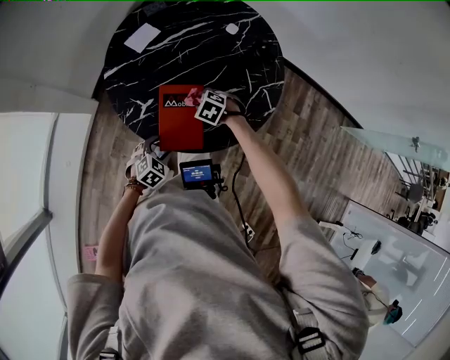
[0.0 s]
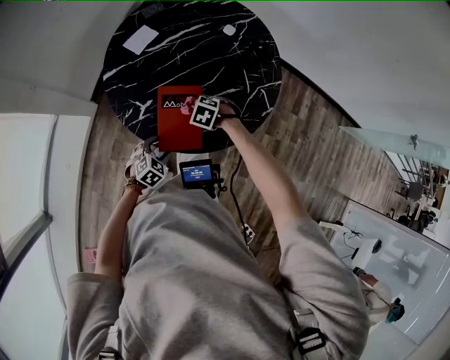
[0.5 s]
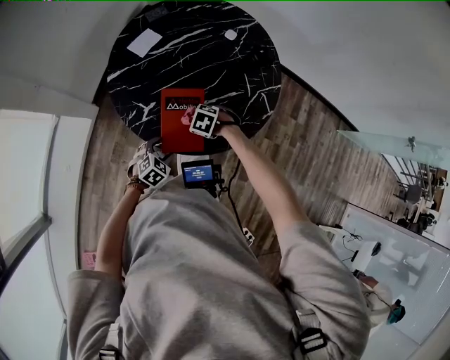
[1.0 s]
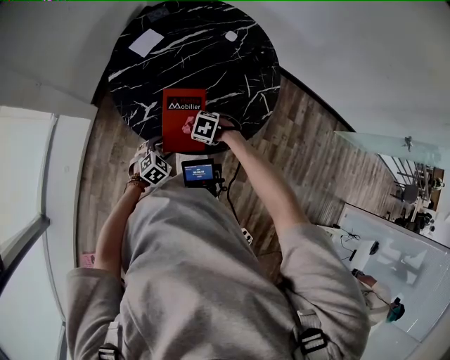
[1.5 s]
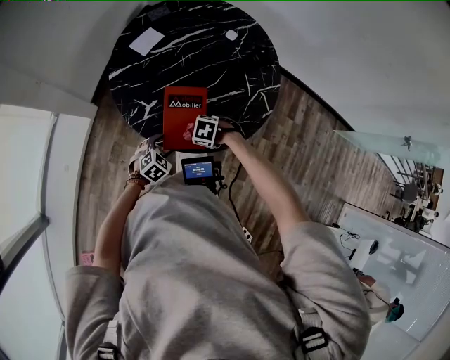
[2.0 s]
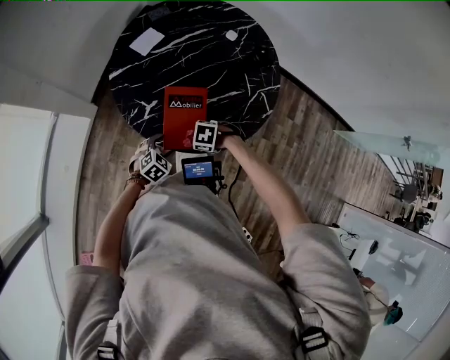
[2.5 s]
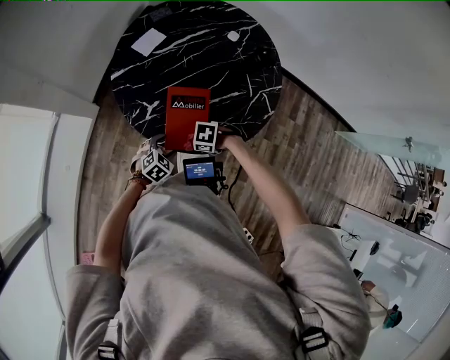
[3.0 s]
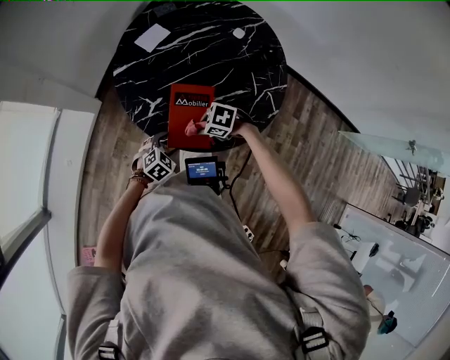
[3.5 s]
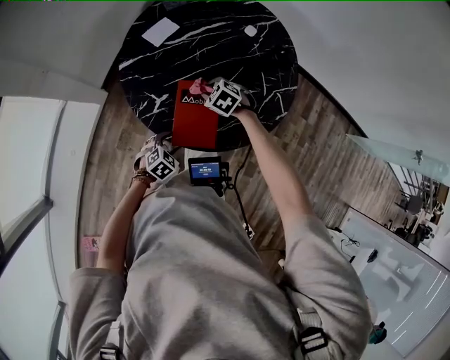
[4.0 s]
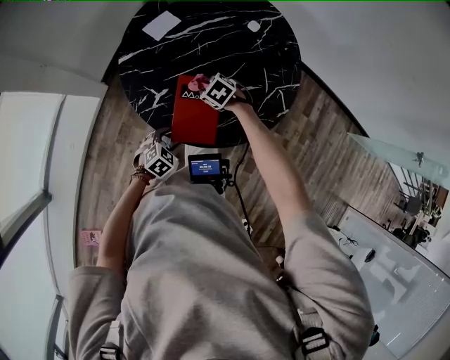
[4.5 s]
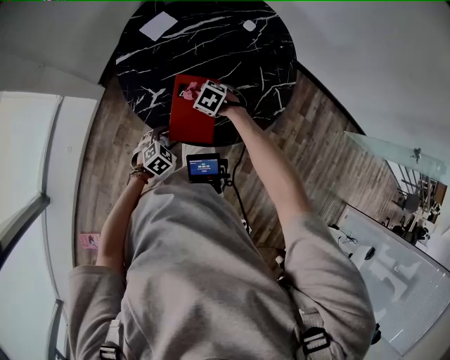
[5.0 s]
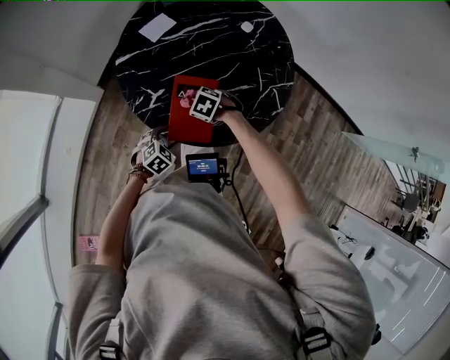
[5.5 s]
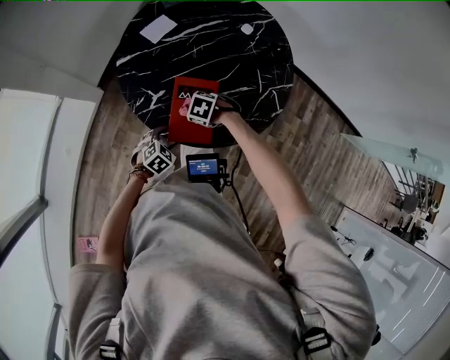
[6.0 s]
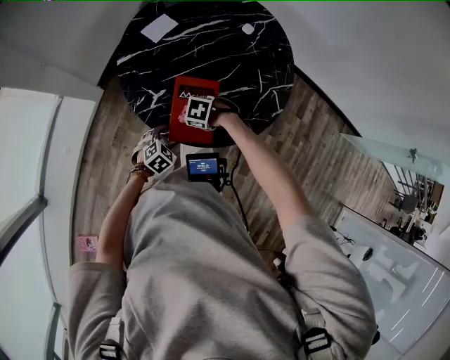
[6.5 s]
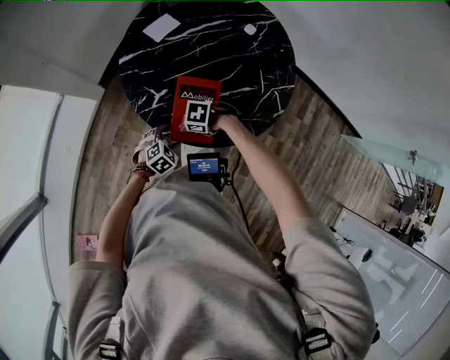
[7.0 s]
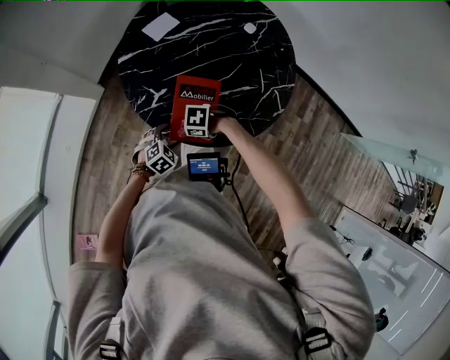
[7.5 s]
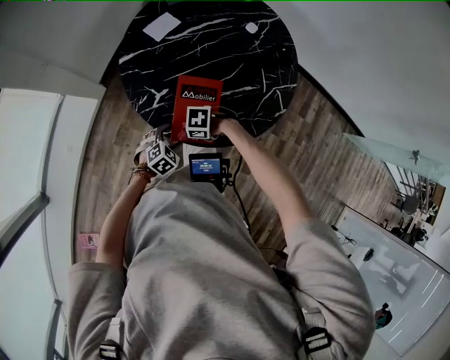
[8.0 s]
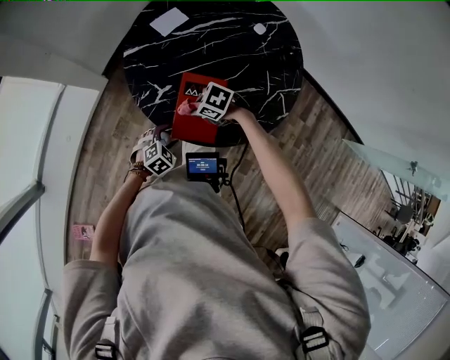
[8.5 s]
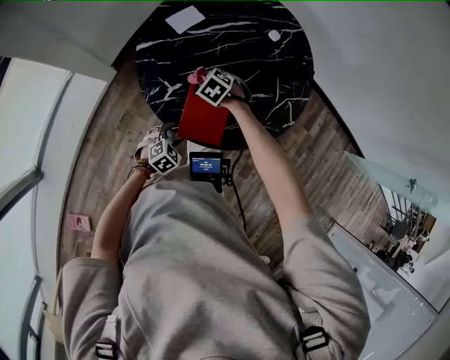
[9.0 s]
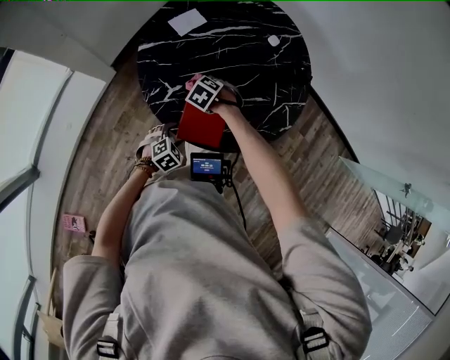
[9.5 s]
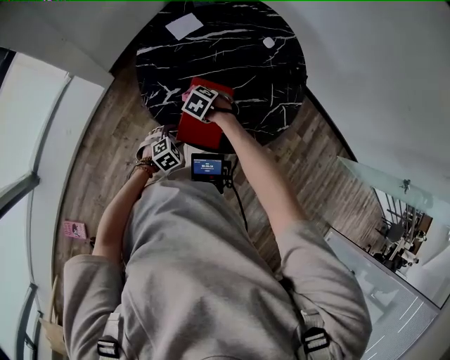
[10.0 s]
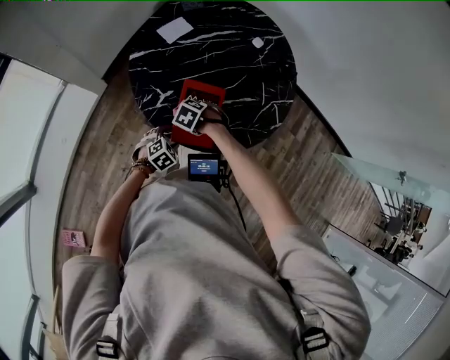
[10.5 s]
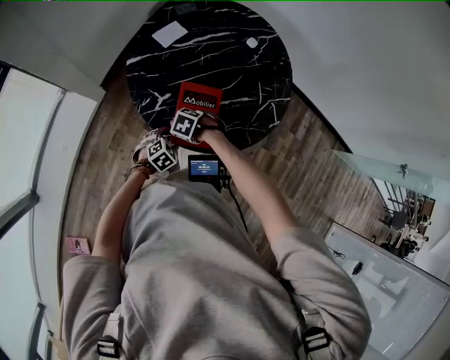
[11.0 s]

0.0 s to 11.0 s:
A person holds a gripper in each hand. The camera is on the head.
0.0 to 2.0 s: The right gripper moves some 15 cm, and changes its angle by some 20 degrees.
2.0 to 3.5 s: The right gripper moves roughly 5 cm.
5.5 to 7.5 s: The right gripper shifts by approximately 10 cm, and rotates roughly 30 degrees.
7.5 to 9.0 s: The right gripper ends up about 20 cm from where it was, and rotates roughly 40 degrees.
9.0 to 11.0 s: The right gripper ends up some 15 cm from where it was.

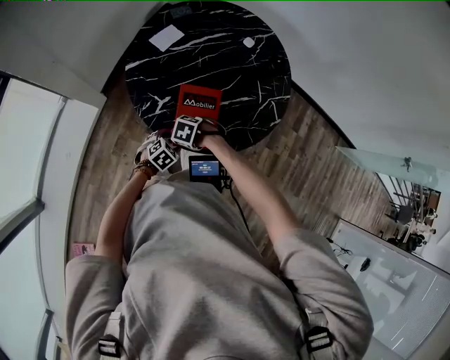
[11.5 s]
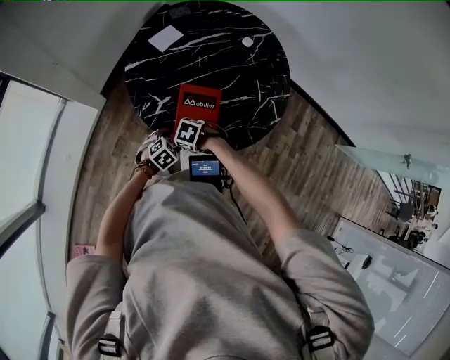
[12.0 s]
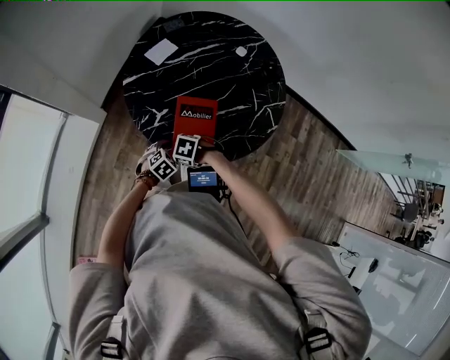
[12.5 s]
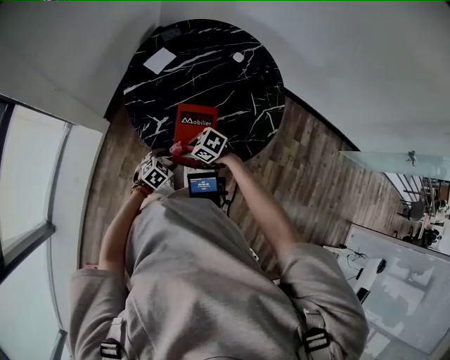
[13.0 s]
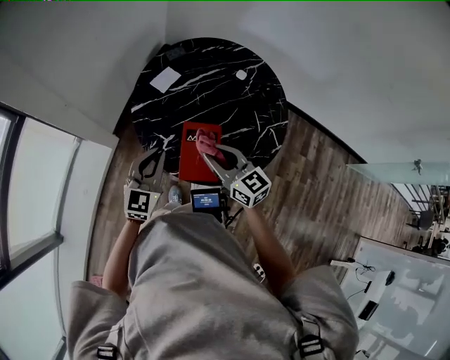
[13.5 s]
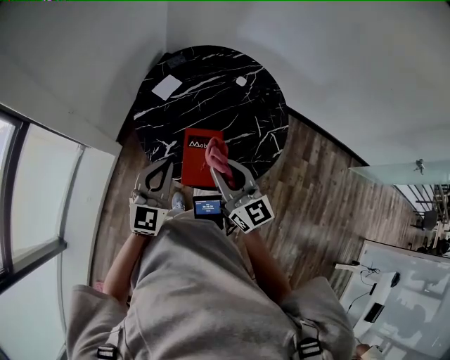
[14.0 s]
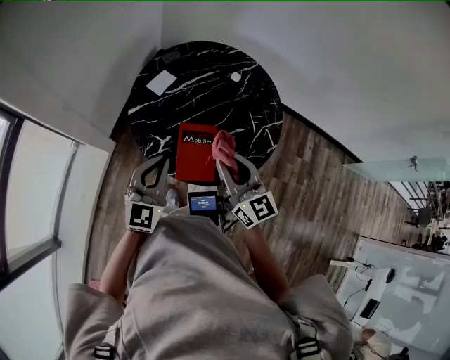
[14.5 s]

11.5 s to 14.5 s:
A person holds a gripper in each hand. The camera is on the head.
11.5 to 13.0 s: The right gripper travels upward by roughly 5 cm, and rotates roughly 30 degrees.
13.0 to 14.5 s: Both grippers travel together upward, about 30 cm. The right gripper tips its fingers upward by approximately 50 degrees, while the left gripper angles its fingers upward, by about 50 degrees, and closes.

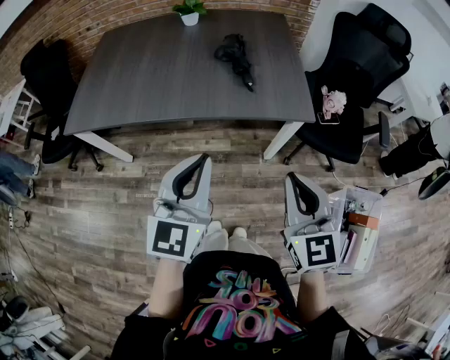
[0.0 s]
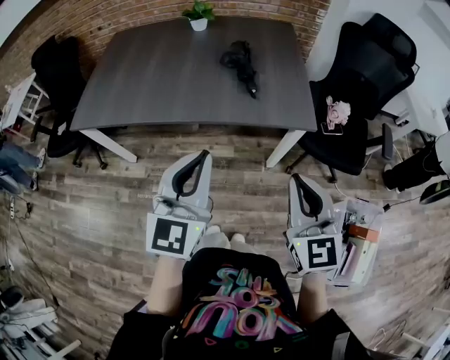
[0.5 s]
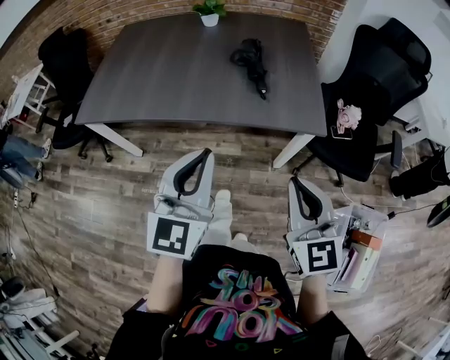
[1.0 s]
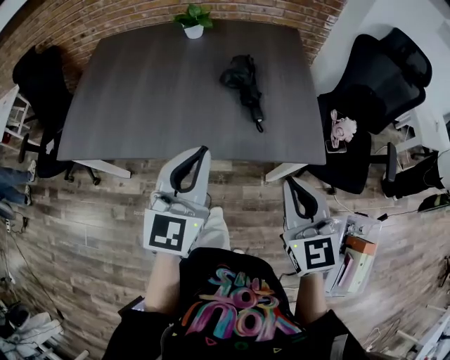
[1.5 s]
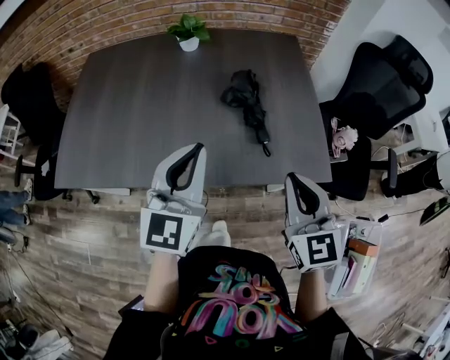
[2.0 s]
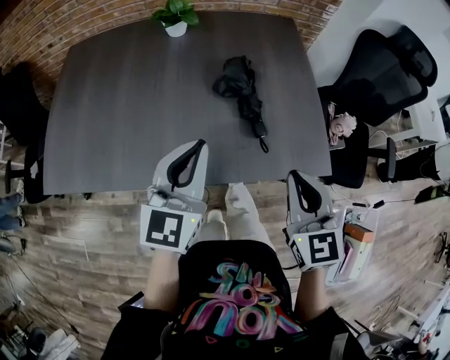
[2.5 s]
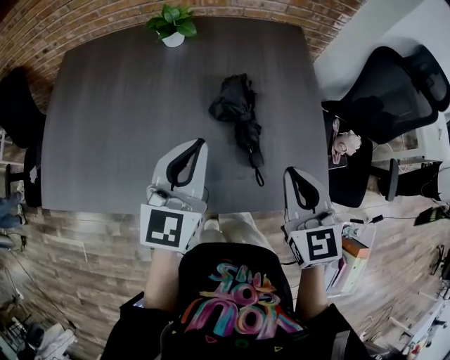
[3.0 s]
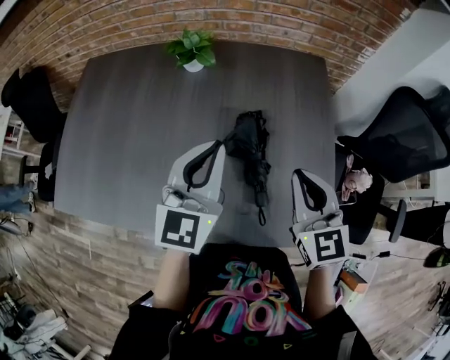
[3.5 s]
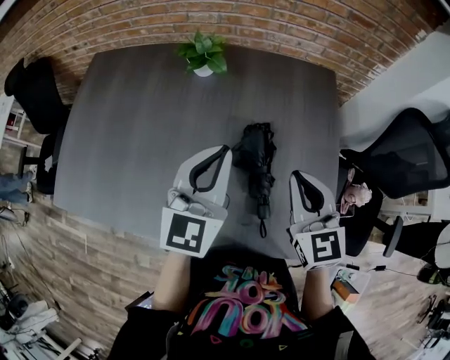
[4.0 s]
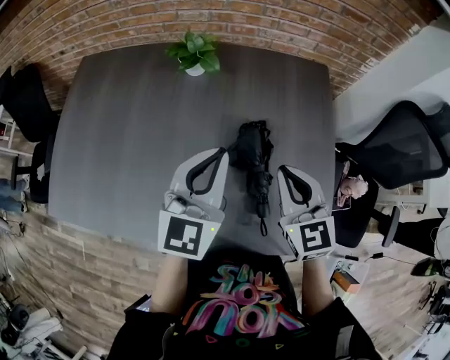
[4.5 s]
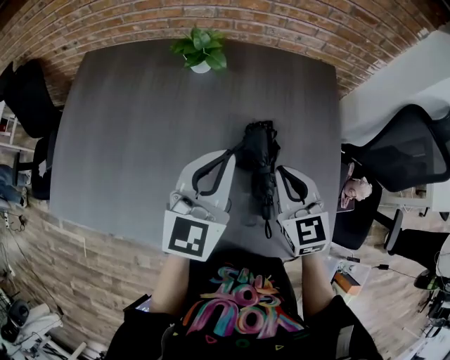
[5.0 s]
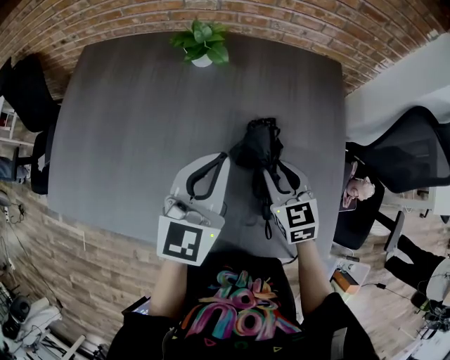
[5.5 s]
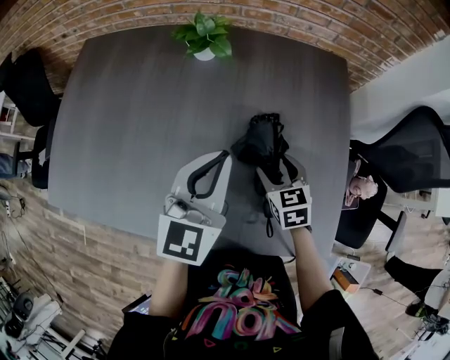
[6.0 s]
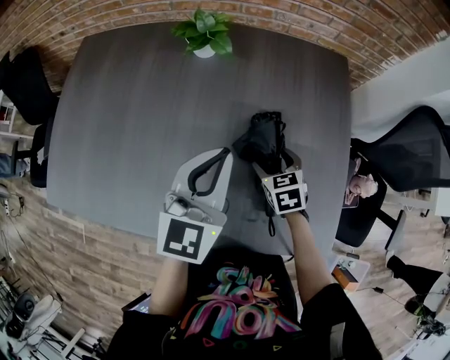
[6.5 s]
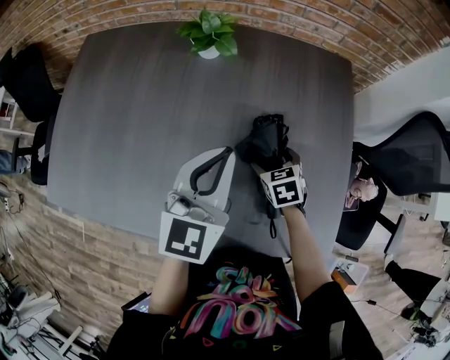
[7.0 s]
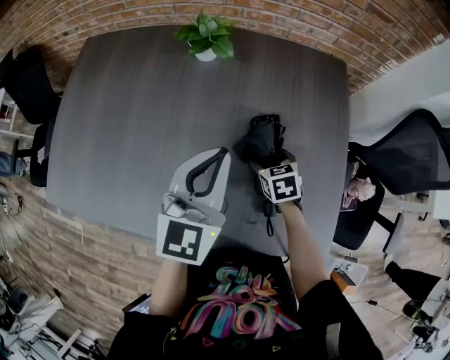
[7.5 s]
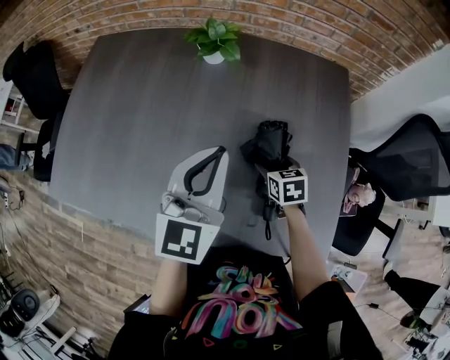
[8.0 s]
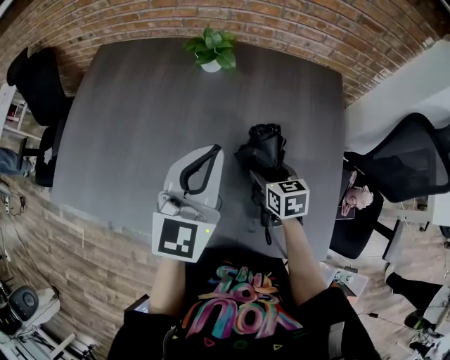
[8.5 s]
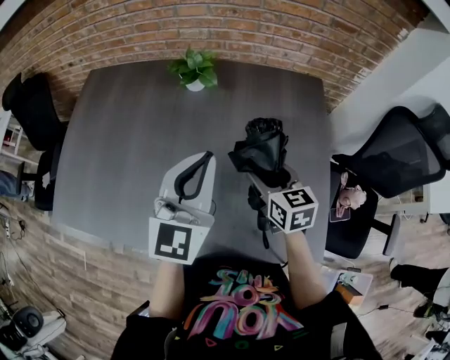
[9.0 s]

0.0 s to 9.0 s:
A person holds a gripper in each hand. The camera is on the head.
0.0 to 2.0 s: Both grippers move forward, roughly 25 cm.
2.0 to 4.5 s: The two grippers go approximately 25 cm forward.
4.5 to 7.0 s: The right gripper goes some 20 cm downward, tilts its fingers some 30 degrees downward, and opens its fingers.
7.0 to 9.0 s: The left gripper moves upward, about 5 cm. The right gripper moves upward, about 15 cm, and turns by about 30 degrees.

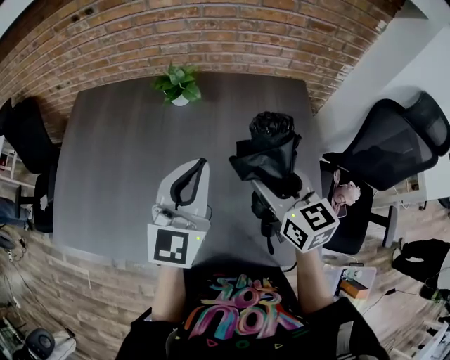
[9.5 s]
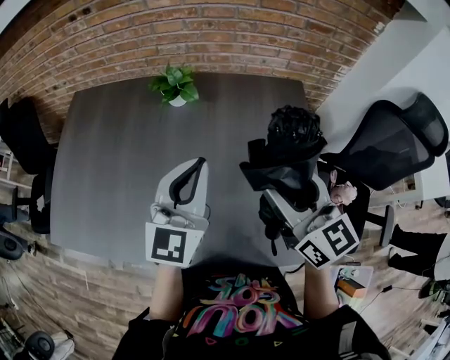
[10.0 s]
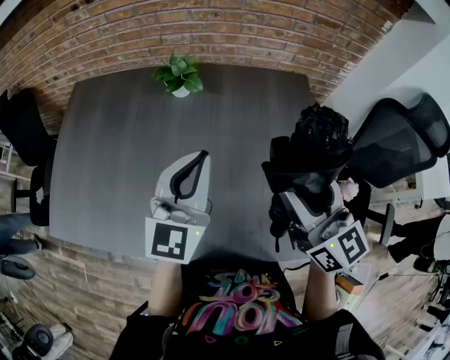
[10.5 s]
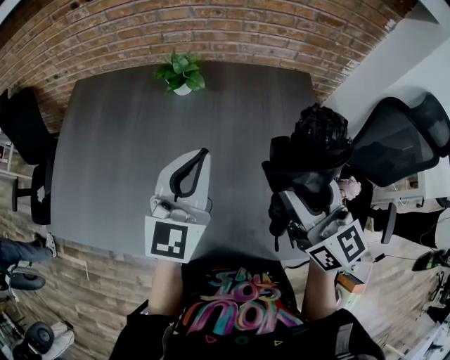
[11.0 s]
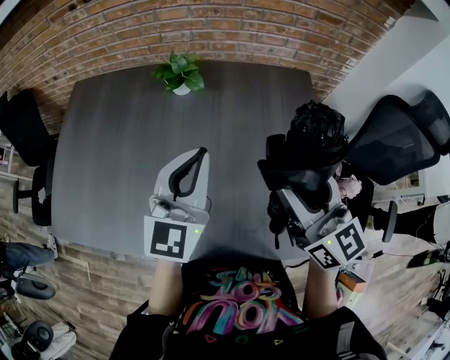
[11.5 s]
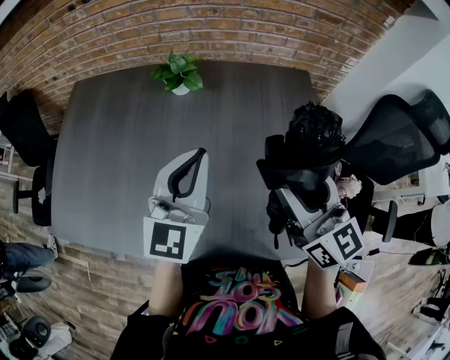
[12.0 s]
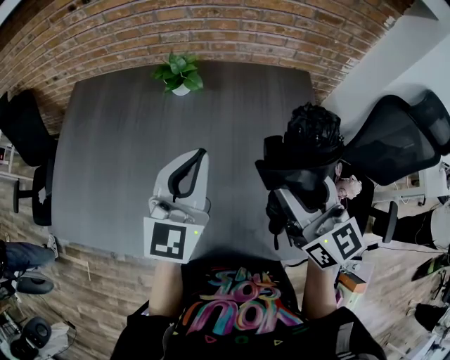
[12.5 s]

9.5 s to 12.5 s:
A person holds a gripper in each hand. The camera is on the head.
9.5 to 11.0 s: The right gripper moves upward, roughly 10 cm.
11.0 to 12.5 s: Neither gripper changes place.
